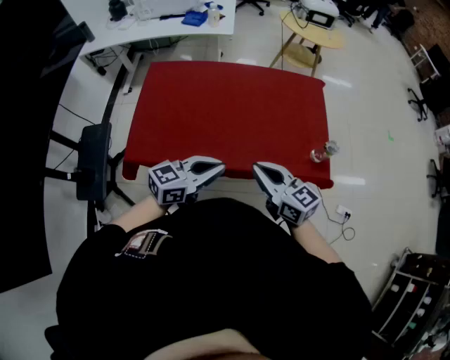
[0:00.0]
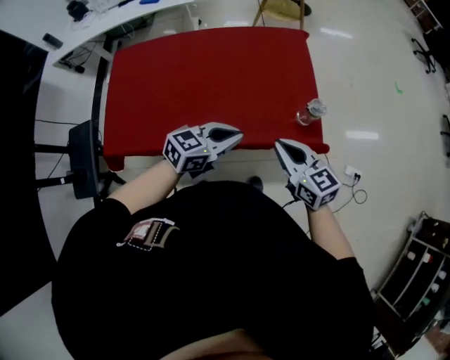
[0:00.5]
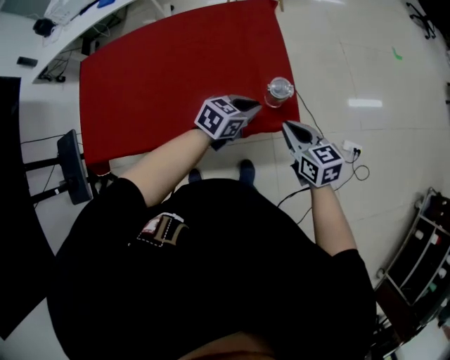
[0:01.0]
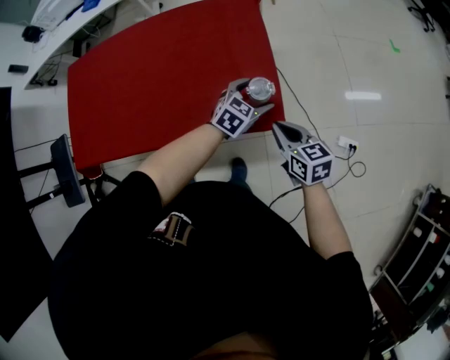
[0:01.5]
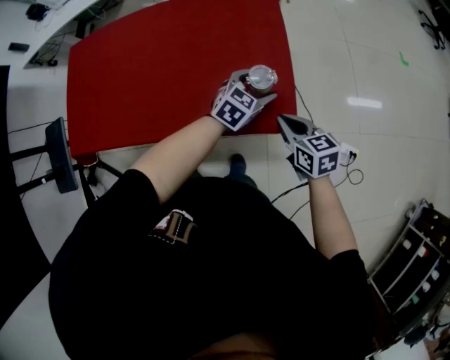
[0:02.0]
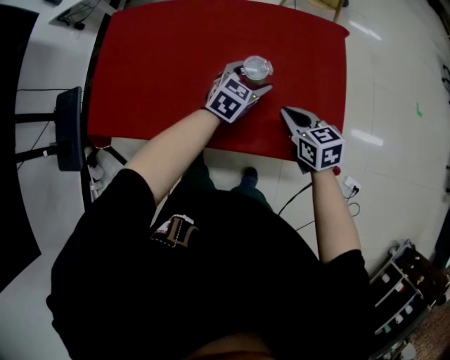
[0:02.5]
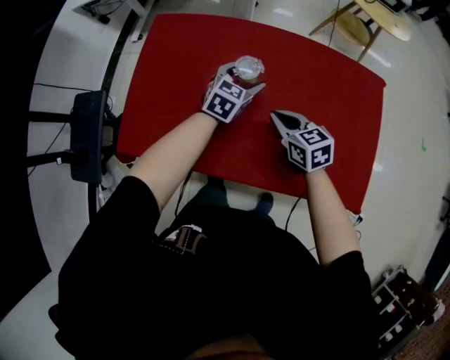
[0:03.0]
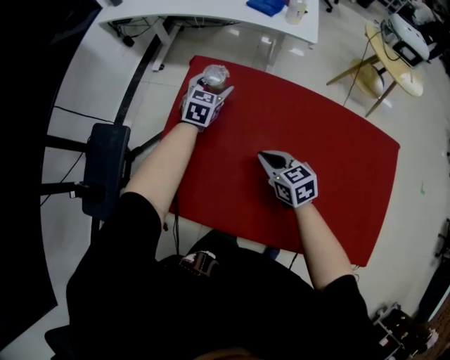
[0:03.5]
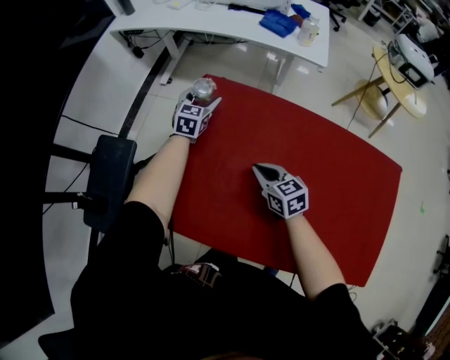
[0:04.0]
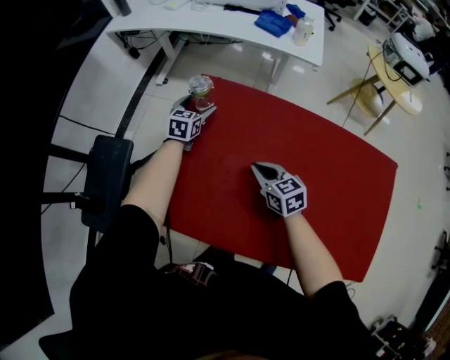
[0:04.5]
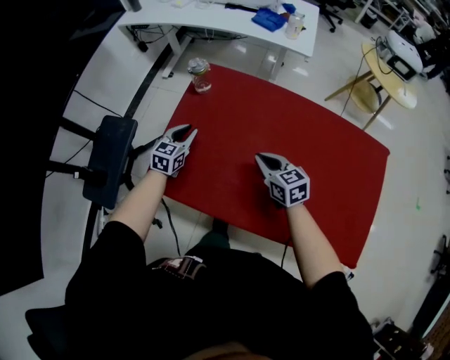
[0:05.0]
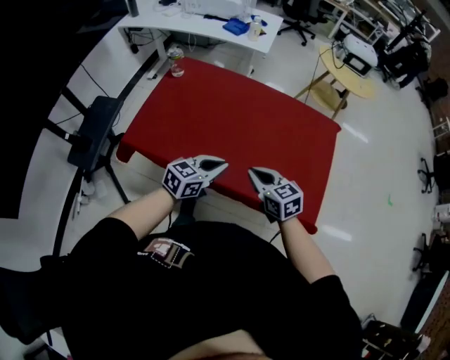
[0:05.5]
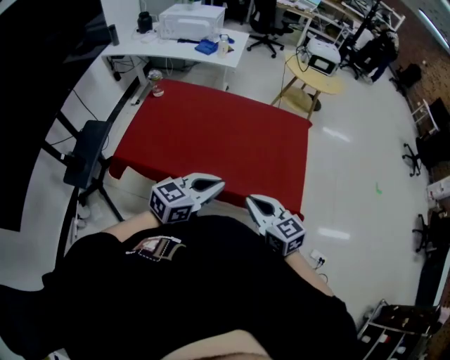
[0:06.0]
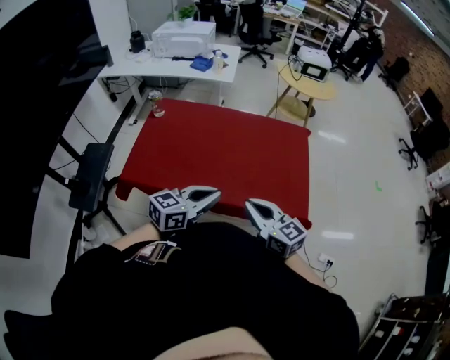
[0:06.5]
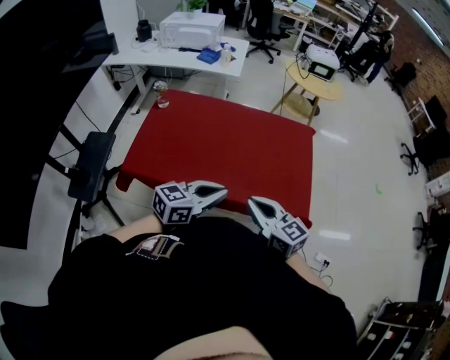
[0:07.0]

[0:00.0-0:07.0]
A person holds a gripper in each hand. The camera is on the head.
0:00.0 to 0:02.0: The grippers both shift to the right, forward and downward by about 50 cm. The left gripper swivels some 30 degrees, and opens its fingers. The right gripper swivels about 30 degrees.
0:02.0 to 0:03.5: Both grippers are carried about 80 cm. The right gripper turns by some 30 degrees. Meanwhile the left gripper turns by roughly 40 degrees.
0:03.5 to 0:05.0: The left gripper travels backward and to the left by some 20 cm, and closes, while the right gripper shifts by approximately 5 cm.
0:05.0 to 0:07.0: The two grippers travel together, approximately 50 cm. The right gripper rotates approximately 20 degrees. The left gripper changes its angle by approximately 50 degrees.

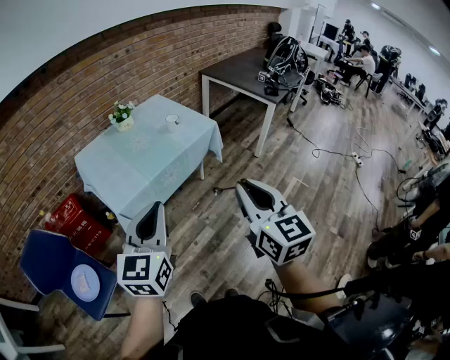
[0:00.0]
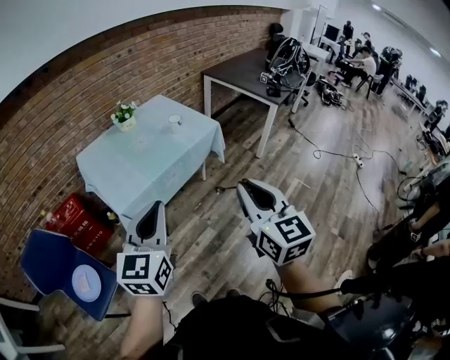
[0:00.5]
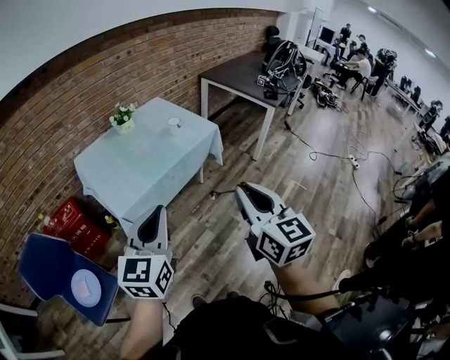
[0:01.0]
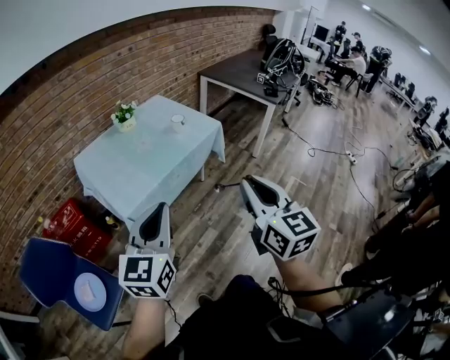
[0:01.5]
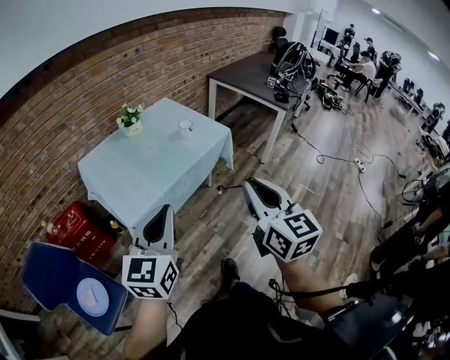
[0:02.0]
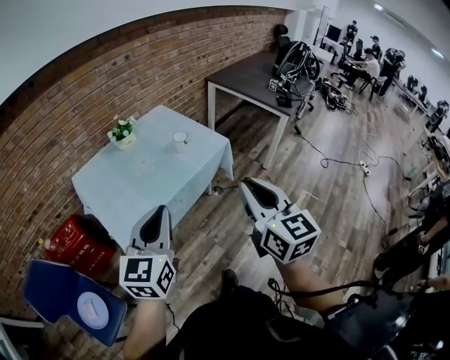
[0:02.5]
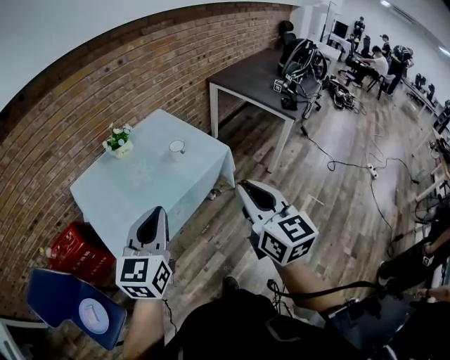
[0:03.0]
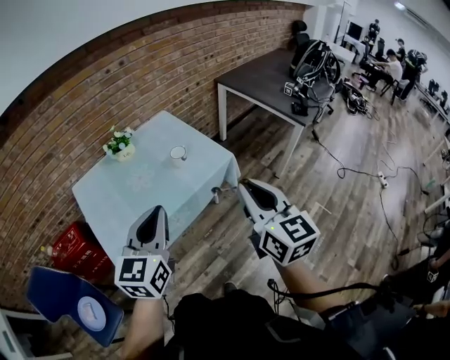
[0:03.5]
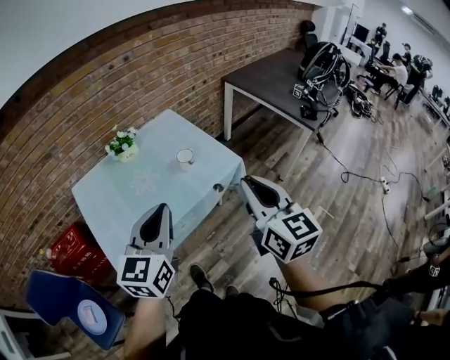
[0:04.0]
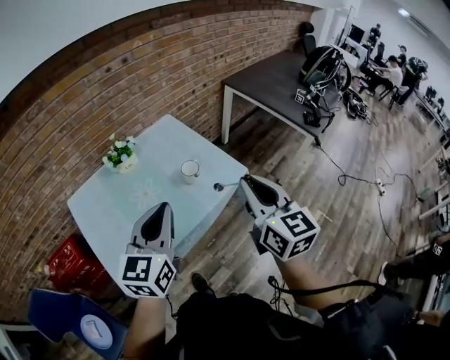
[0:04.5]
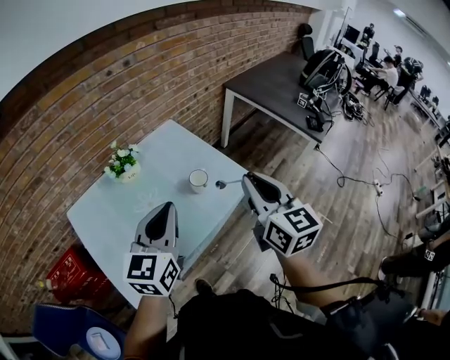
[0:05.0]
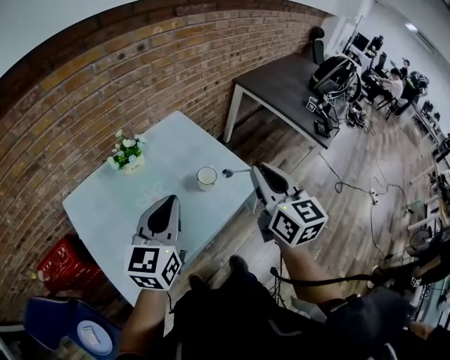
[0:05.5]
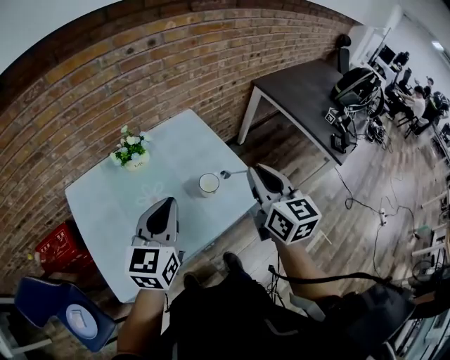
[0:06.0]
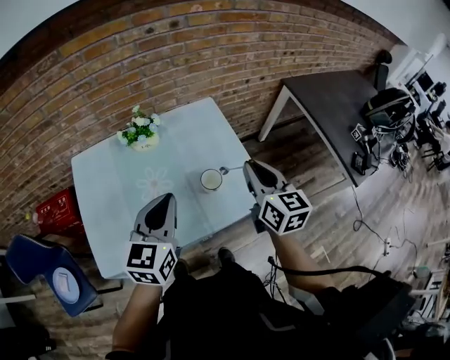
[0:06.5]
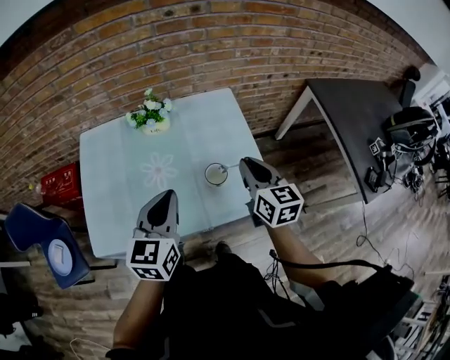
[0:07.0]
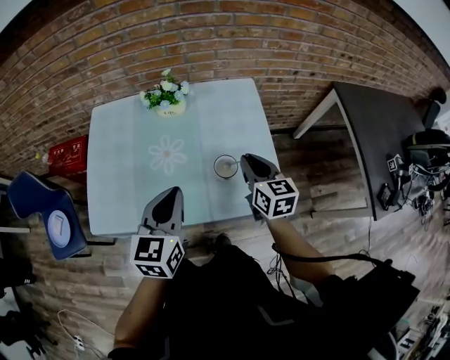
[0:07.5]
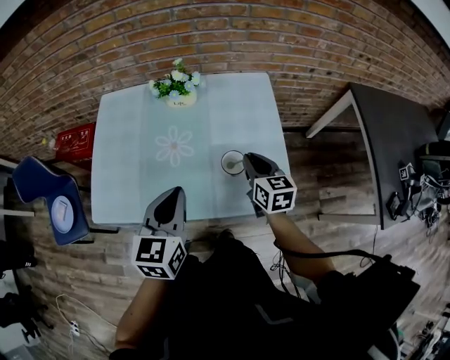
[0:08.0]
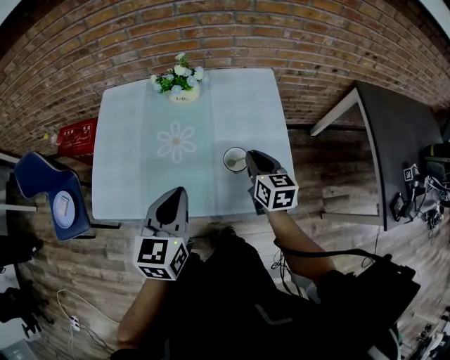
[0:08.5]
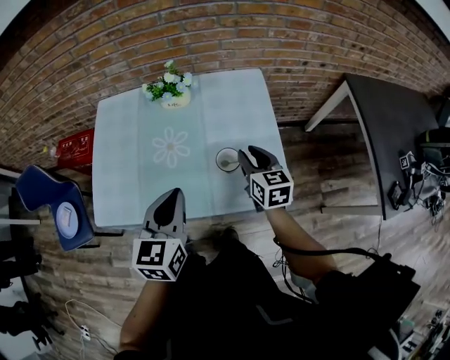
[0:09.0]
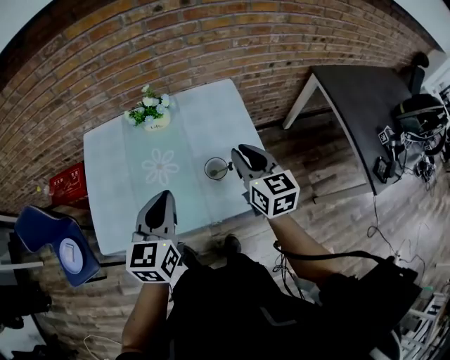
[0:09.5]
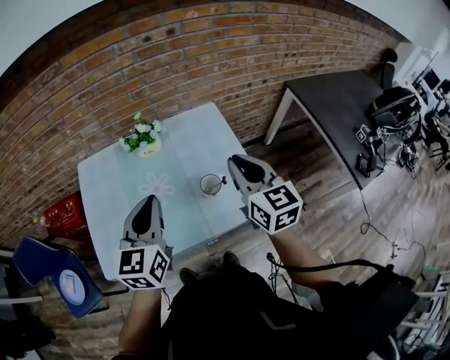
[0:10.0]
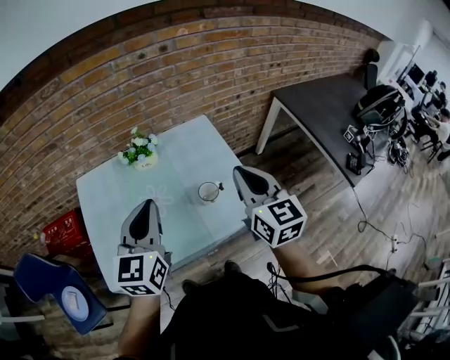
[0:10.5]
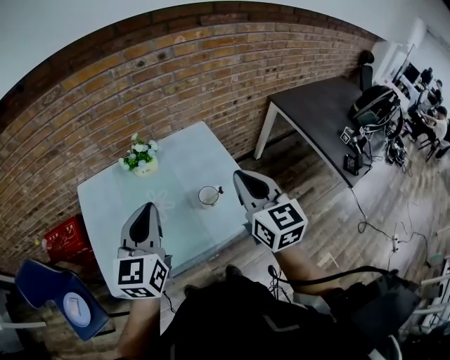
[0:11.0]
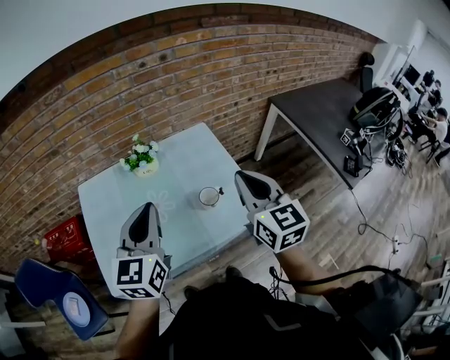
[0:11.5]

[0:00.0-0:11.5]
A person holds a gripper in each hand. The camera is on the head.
0:00.0 to 0:02.0: The two grippers go about 10 cm forward and to the left.
0:02.0 to 0:04.0: The two grippers go approximately 25 cm forward.
0:04.0 to 0:06.0: Both grippers travel together forward, roughly 20 cm.
0:06.0 to 0:07.5: The right gripper moves downward, approximately 20 cm, and rotates approximately 30 degrees, while the left gripper goes approximately 10 cm downward, and swivels approximately 30 degrees.
0:07.5 to 0:09.5: The right gripper shifts about 5 cm upward.
0:09.5 to 0:11.5: The right gripper moves upward and backward, some 15 cm, while the left gripper heads upward, covering some 10 cm.

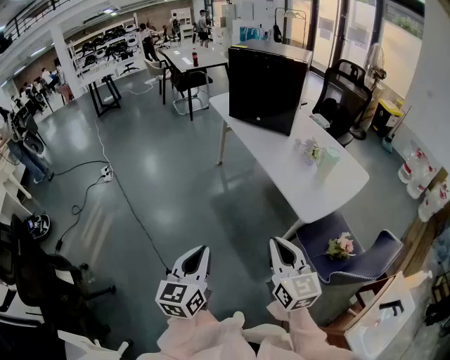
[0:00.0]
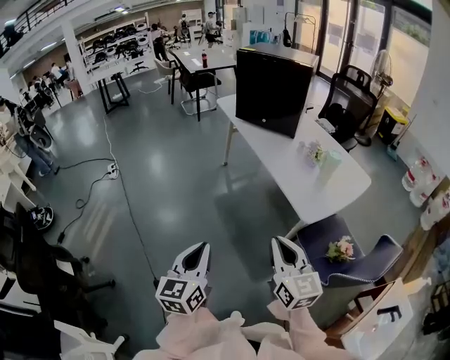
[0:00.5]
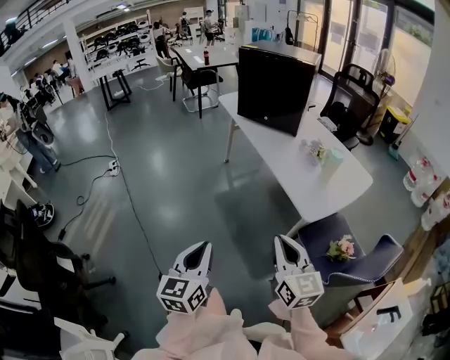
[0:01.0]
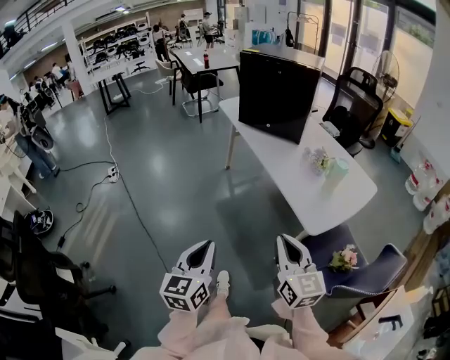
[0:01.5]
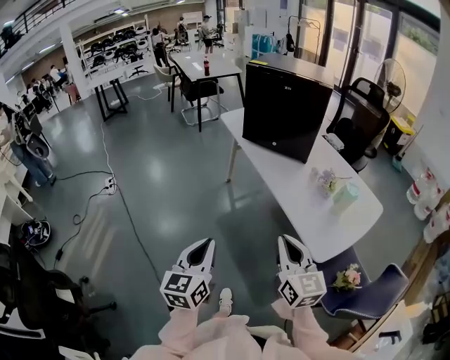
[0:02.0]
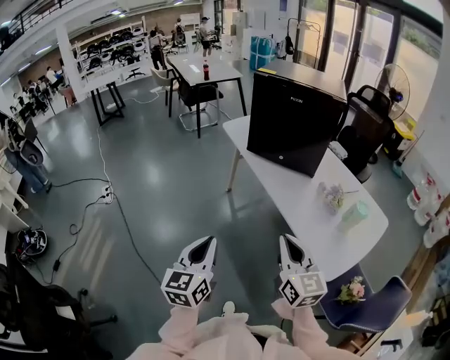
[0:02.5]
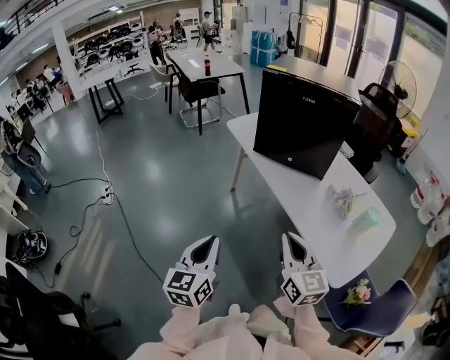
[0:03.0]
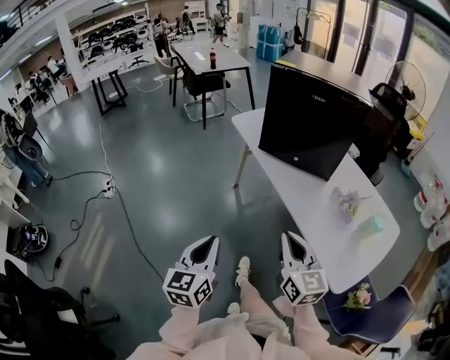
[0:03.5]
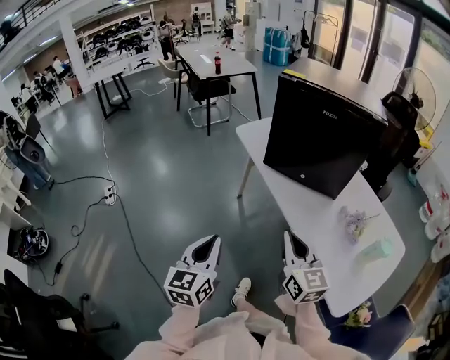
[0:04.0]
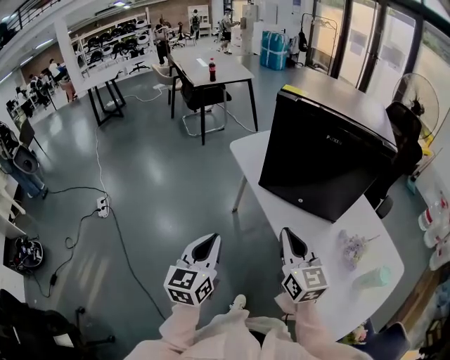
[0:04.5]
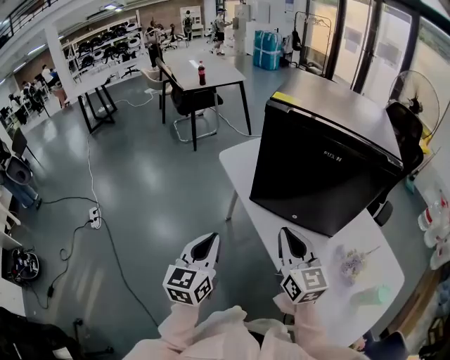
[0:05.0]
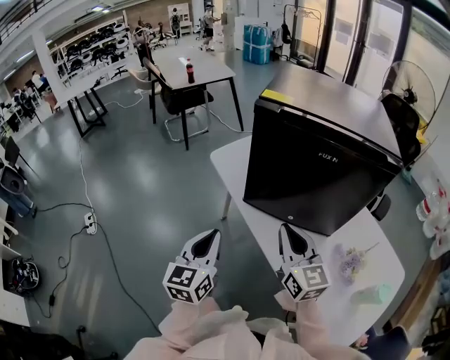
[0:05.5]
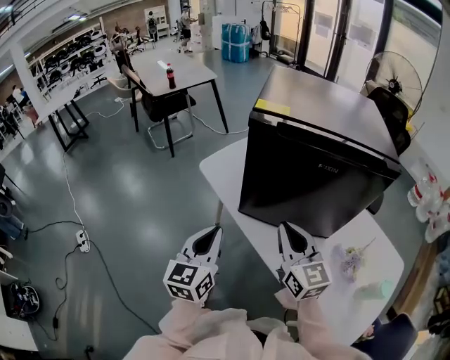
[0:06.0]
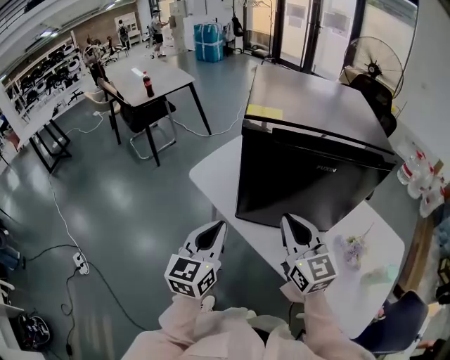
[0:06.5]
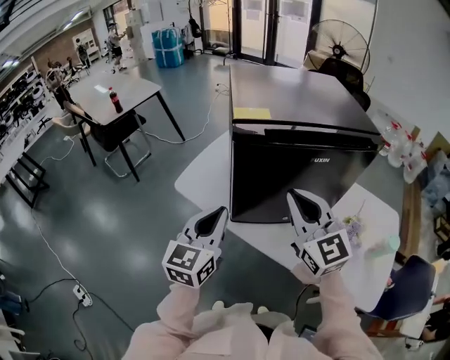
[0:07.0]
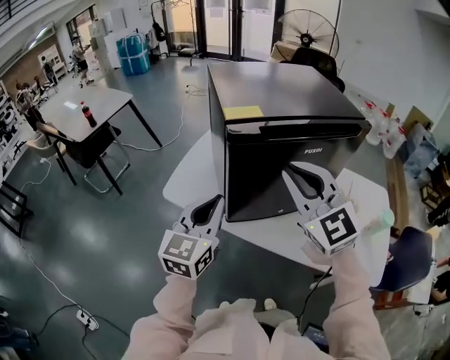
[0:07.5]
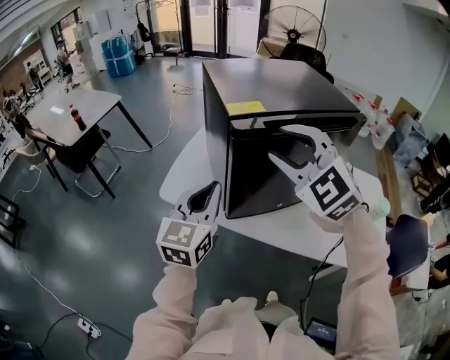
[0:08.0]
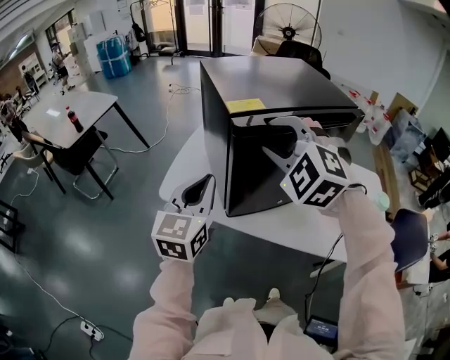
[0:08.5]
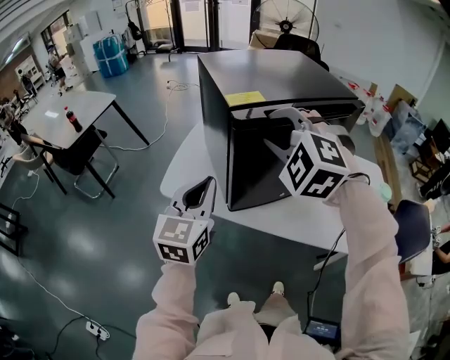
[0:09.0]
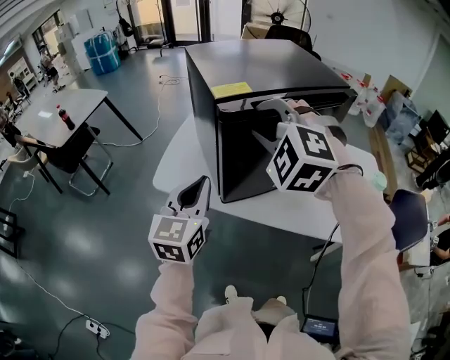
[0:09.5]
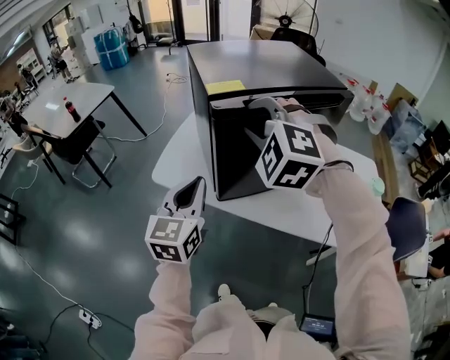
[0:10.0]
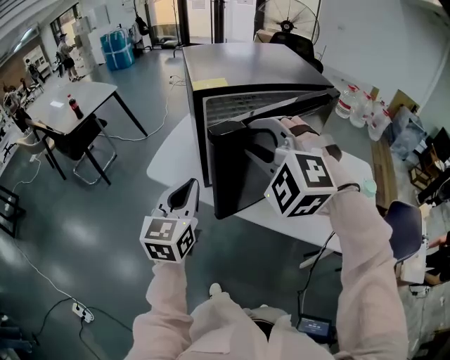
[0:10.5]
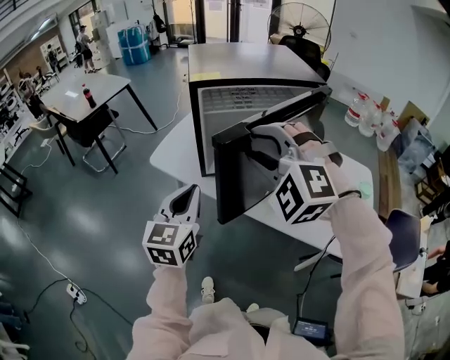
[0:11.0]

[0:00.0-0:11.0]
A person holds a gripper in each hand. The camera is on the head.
0:00.0 to 0:02.0: Both grippers move forward, approximately 20 cm.
0:02.0 to 0:03.5: Both grippers travel together forward and to the left, approximately 20 cm.
0:03.5 to 0:05.5: Both grippers travel together forward, roughly 35 cm.
0:05.5 to 0:07.5: The right gripper moves upward, about 15 cm, and turns by approximately 40 degrees, while the left gripper changes place by about 20 cm, and swivels some 40 degrees.
0:07.5 to 0:09.0: The right gripper shifts some 5 cm to the left, and turns by roughly 50 degrees.
0:09.0 to 0:11.0: Both grippers travel together backward and to the right, some 20 cm.
